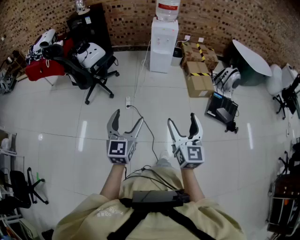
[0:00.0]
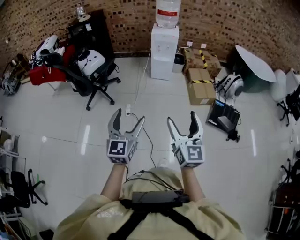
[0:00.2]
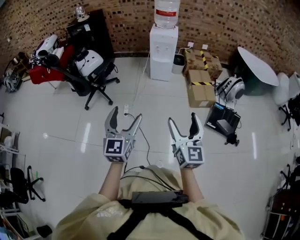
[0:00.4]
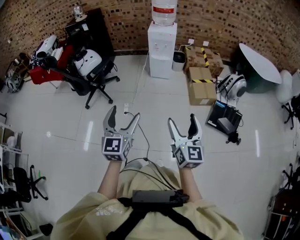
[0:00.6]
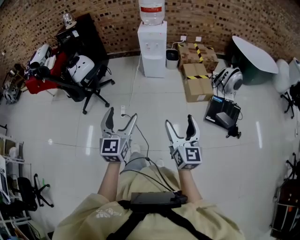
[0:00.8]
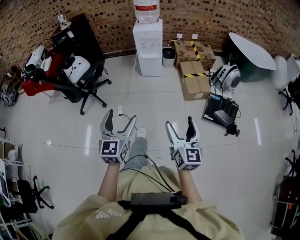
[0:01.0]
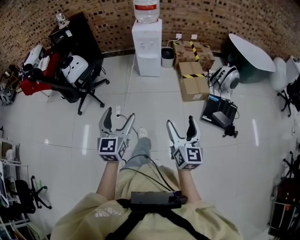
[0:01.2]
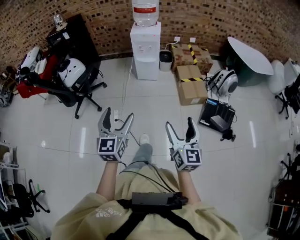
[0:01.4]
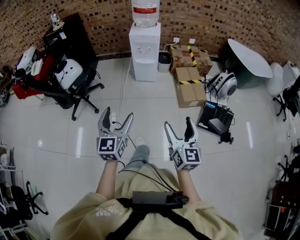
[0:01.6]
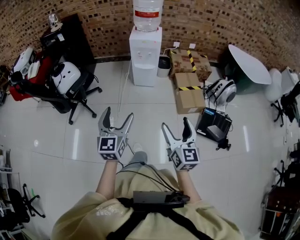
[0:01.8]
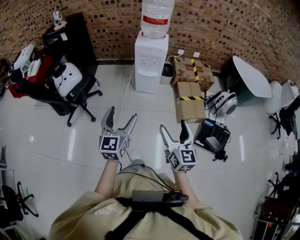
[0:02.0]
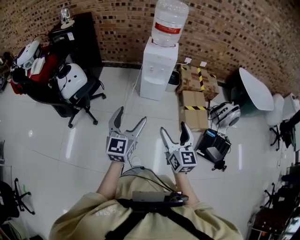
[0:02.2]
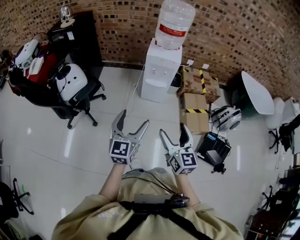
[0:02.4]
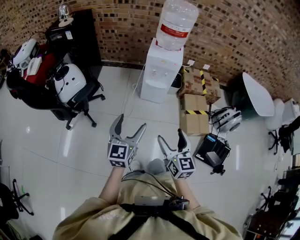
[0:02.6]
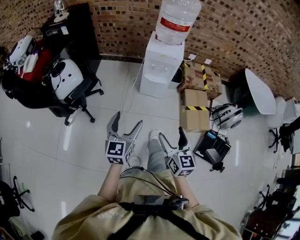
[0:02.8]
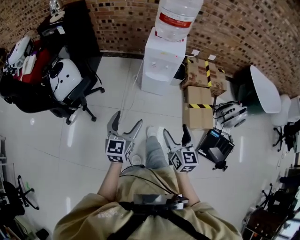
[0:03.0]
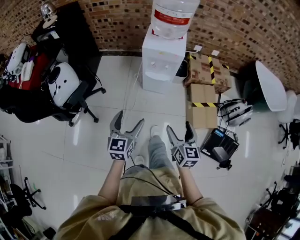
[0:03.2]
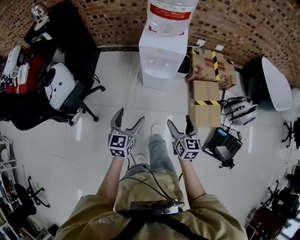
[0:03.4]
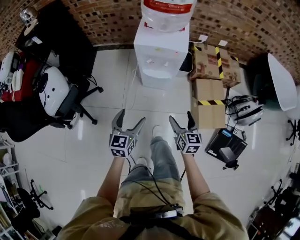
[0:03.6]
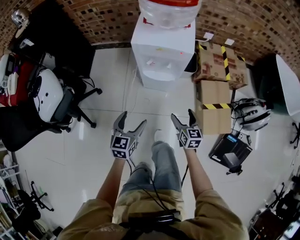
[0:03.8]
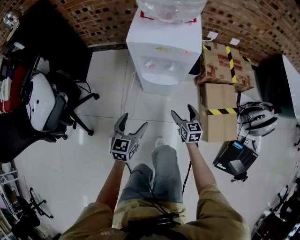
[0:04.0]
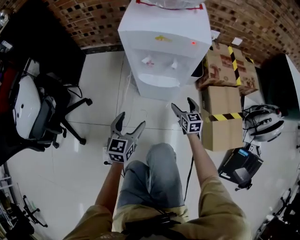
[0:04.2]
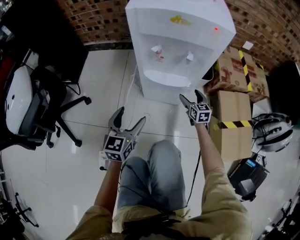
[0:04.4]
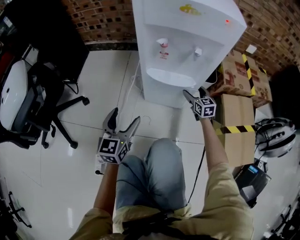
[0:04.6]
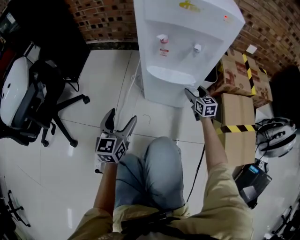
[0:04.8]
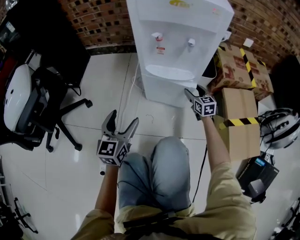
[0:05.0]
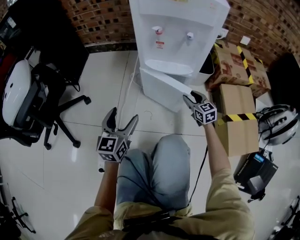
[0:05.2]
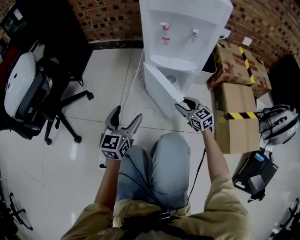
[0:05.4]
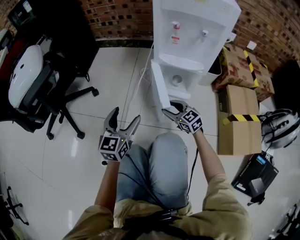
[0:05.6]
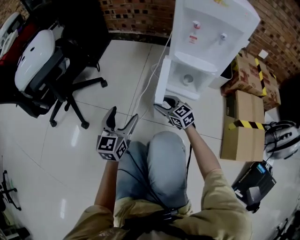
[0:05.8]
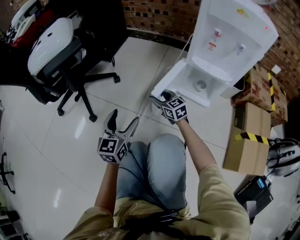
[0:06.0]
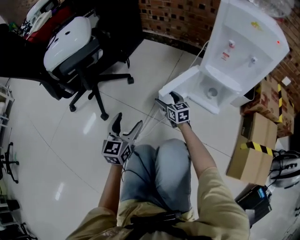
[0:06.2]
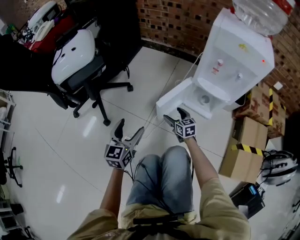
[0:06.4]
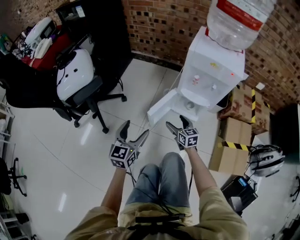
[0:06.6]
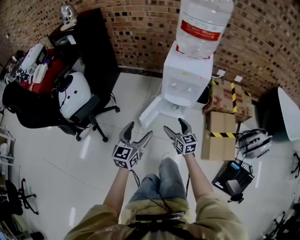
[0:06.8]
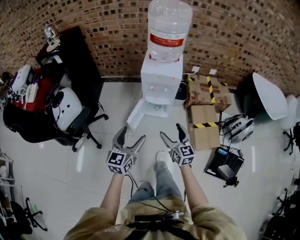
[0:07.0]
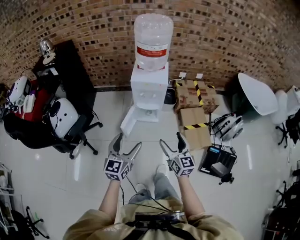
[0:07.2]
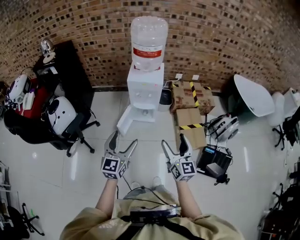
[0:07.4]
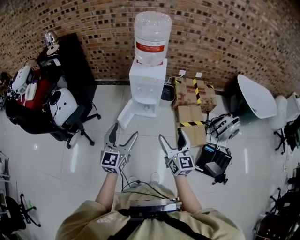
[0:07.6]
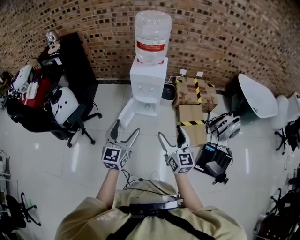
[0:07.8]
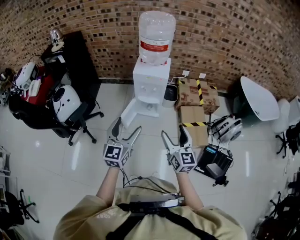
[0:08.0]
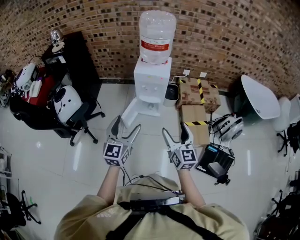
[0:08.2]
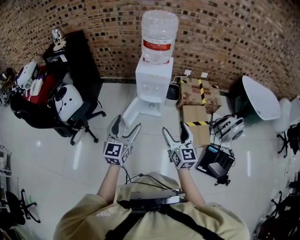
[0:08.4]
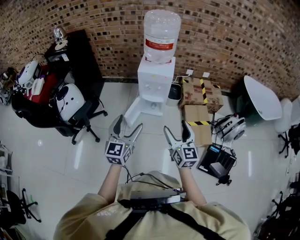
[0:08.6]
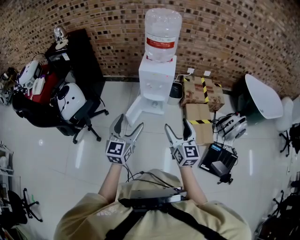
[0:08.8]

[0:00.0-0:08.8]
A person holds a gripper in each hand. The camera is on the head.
0:00.0 to 0:01.4: The right gripper heads to the right and forward, covering about 25 cm; the left gripper shifts roughly 25 cm forward and to the right.
0:01.4 to 0:03.0: Both grippers move forward, some 40 cm.
0:03.0 to 0:04.4: The grippers both shift downward and forward by some 70 cm.
0:04.4 to 0:05.8: The right gripper ends up approximately 35 cm from where it was, turns by roughly 40 degrees, and closes up, while the left gripper shifts by some 20 cm.
0:05.8 to 0:07.4: Both grippers move upward, roughly 70 cm. The right gripper changes its angle by approximately 60 degrees, and opens up.
0:07.4 to 0:08.8: There are only small adjustments of the grippers.

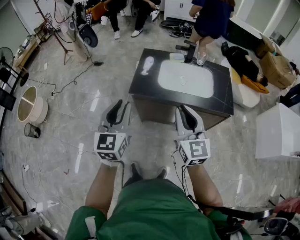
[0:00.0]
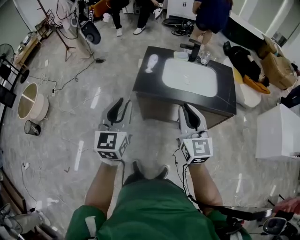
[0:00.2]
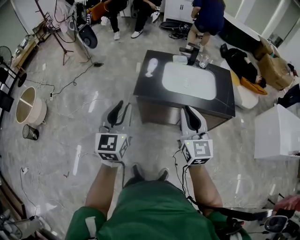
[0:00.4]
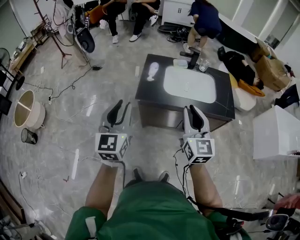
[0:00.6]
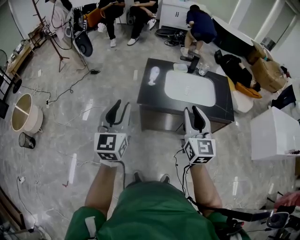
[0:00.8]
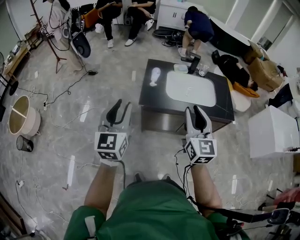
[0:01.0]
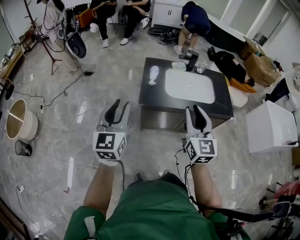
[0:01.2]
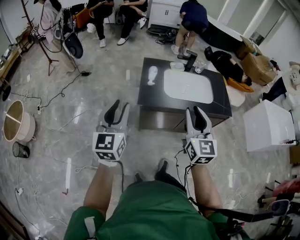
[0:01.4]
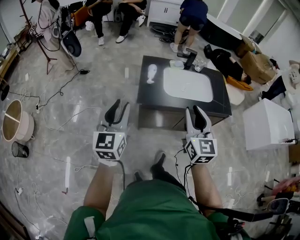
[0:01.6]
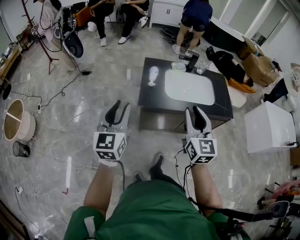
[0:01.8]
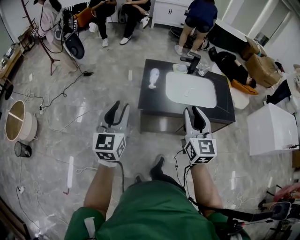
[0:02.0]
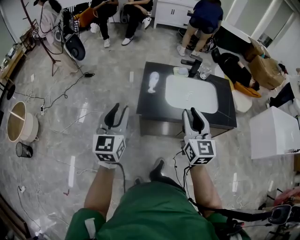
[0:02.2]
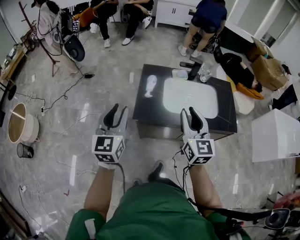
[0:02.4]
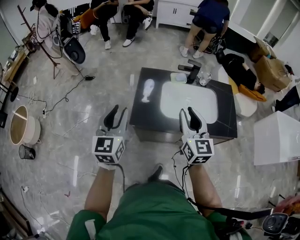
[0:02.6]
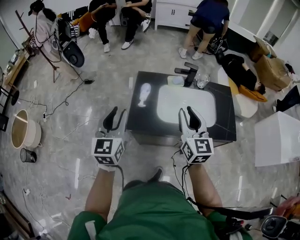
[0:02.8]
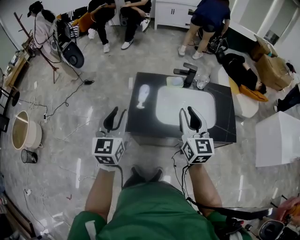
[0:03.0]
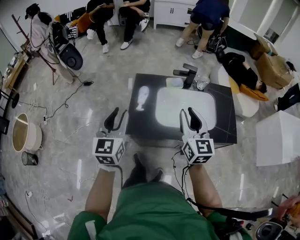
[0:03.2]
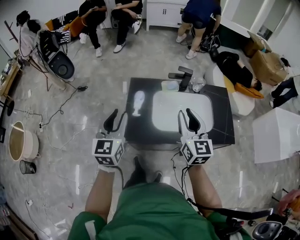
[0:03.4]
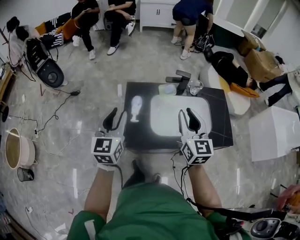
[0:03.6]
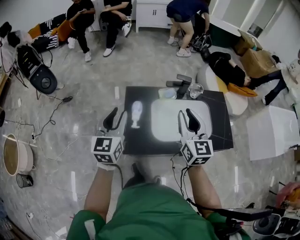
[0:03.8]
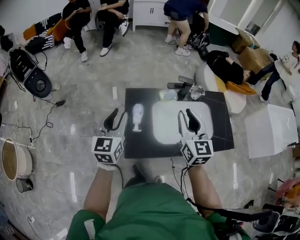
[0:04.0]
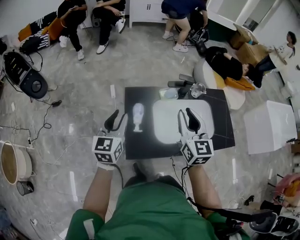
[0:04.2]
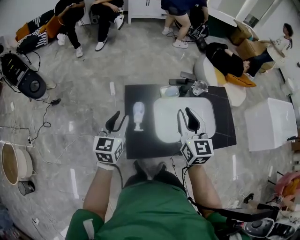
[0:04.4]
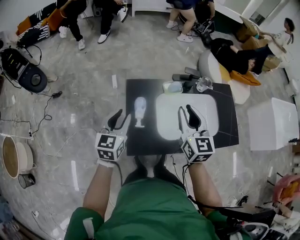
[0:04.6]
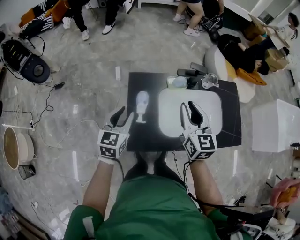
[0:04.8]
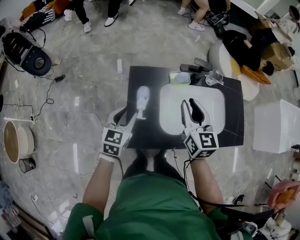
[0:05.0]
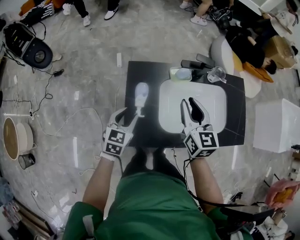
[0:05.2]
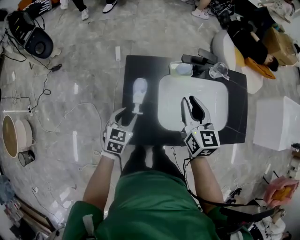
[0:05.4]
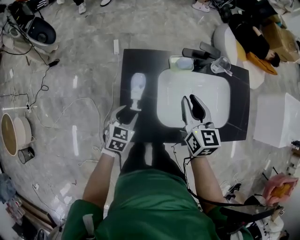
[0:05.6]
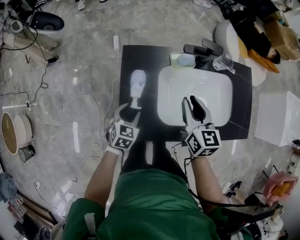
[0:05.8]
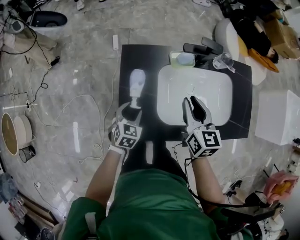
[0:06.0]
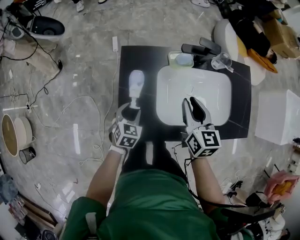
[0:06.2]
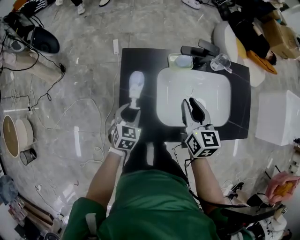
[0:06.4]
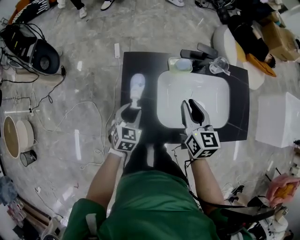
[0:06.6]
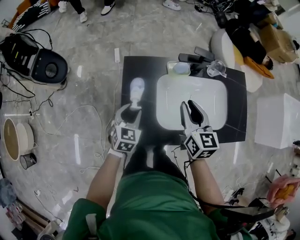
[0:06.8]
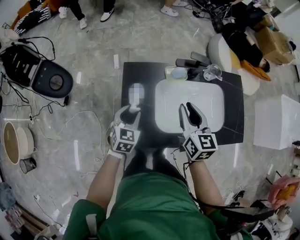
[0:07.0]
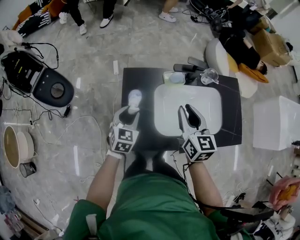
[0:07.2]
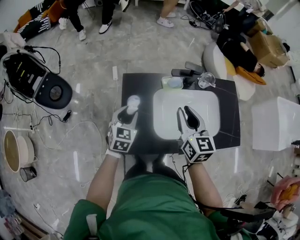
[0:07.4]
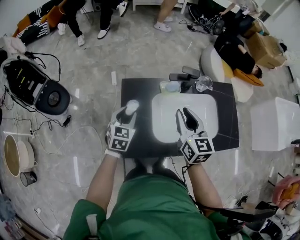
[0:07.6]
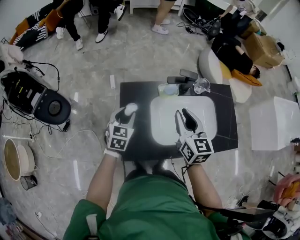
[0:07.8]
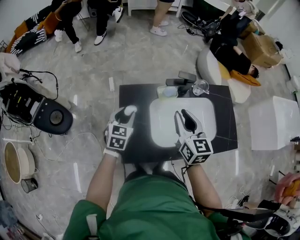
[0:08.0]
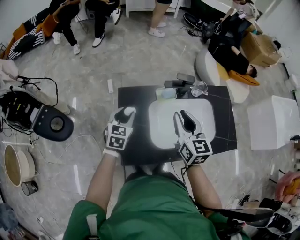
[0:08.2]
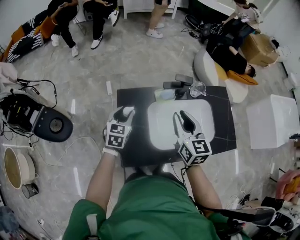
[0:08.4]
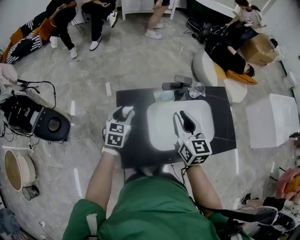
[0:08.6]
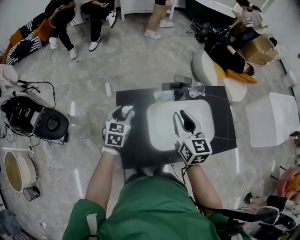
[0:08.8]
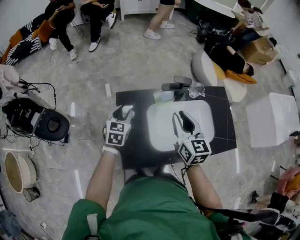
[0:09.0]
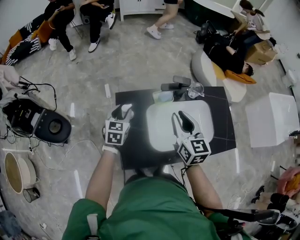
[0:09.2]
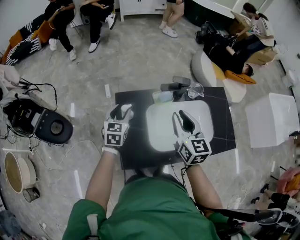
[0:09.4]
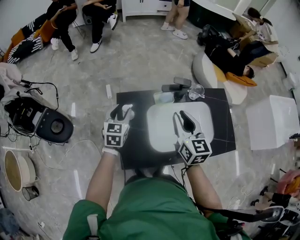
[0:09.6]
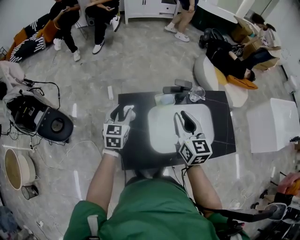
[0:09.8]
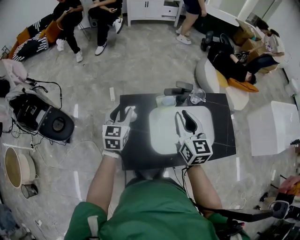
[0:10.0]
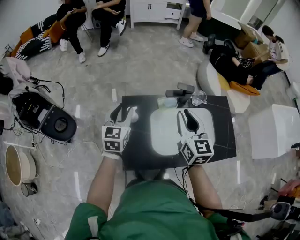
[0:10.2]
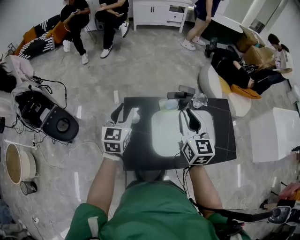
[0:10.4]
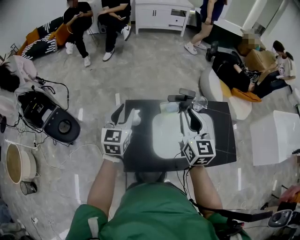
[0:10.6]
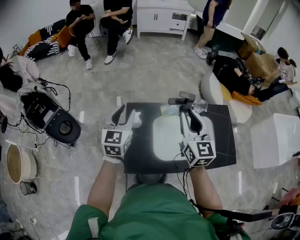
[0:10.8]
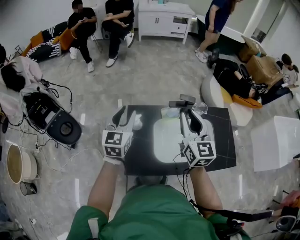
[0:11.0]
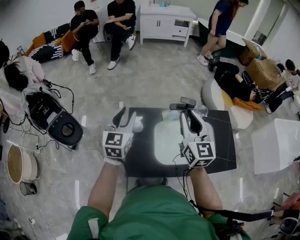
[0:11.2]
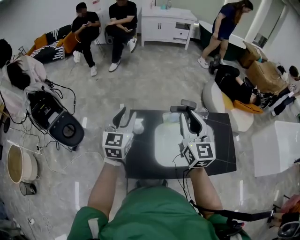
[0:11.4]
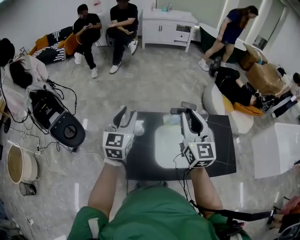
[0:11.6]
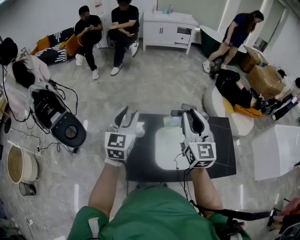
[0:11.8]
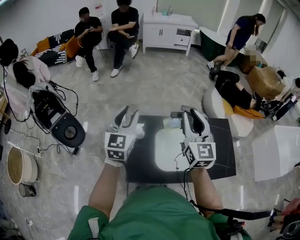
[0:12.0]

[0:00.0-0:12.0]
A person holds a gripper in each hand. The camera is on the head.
0:00.0 to 0:01.6: Both grippers move to the left, roughly 20 cm.
0:01.6 to 0:03.0: The two grippers go about 30 cm forward and to the right.
0:03.0 to 0:04.4: The left gripper moves forward and downward, roughly 25 cm; the right gripper shifts approximately 20 cm forward.
0:04.4 to 0:06.0: The right gripper moves downward, about 20 cm, while the left gripper shifts about 30 cm downward, and tilts its fingers roughly 30 degrees downward.
0:06.0 to 0:07.6: Both grippers travel together upward, about 15 cm.
0:07.6 to 0:09.0: The left gripper is displaced forward by roughly 5 cm.
0:09.0 to 0:10.4: The right gripper goes approximately 5 cm upward; the left gripper goes some 15 cm upward.
0:10.4 to 0:12.0: The grippers both shift upward by about 10 cm.

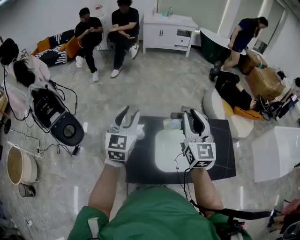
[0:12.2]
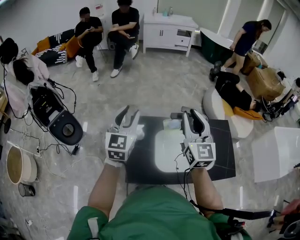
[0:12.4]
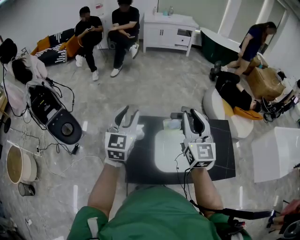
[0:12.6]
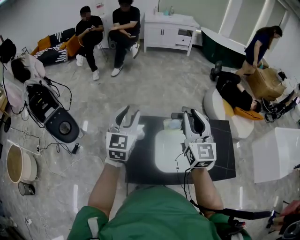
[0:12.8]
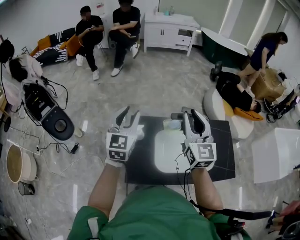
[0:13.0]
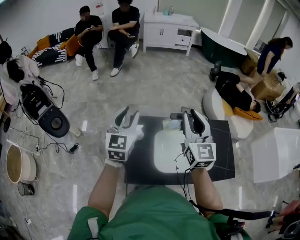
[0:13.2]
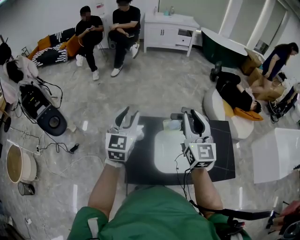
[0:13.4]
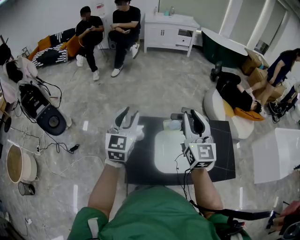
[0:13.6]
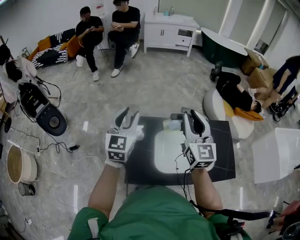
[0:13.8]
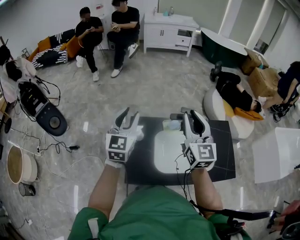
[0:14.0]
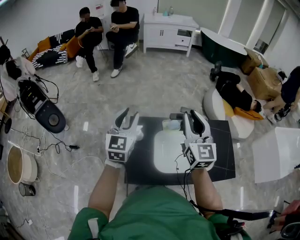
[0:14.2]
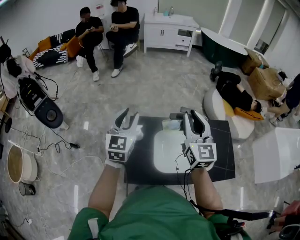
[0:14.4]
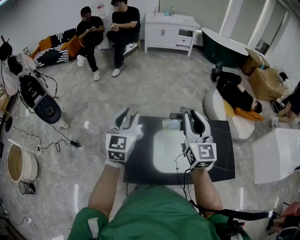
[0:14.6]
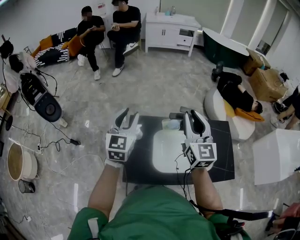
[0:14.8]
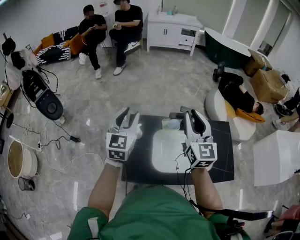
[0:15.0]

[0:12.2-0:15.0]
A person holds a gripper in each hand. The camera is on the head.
0:12.2 to 0:15.0: The grippers stay close to where they were, moving slightly.
